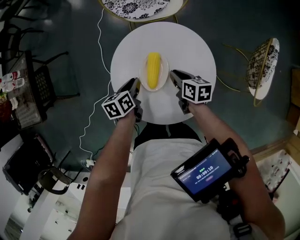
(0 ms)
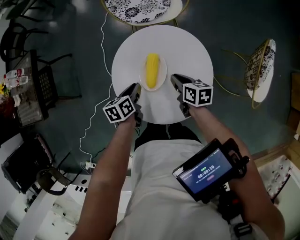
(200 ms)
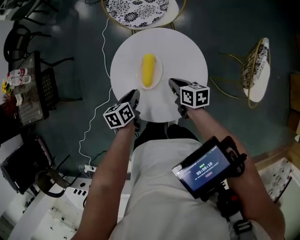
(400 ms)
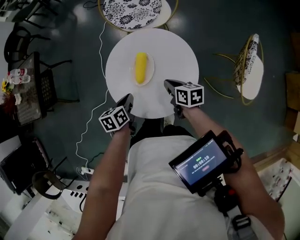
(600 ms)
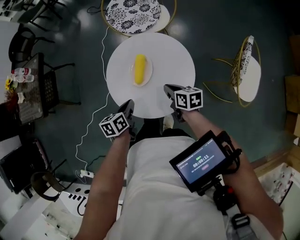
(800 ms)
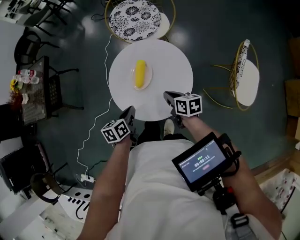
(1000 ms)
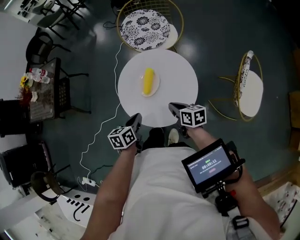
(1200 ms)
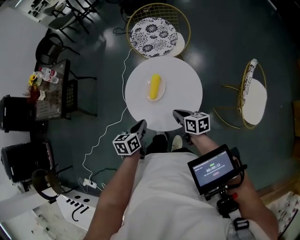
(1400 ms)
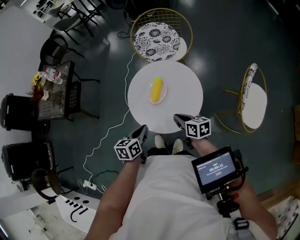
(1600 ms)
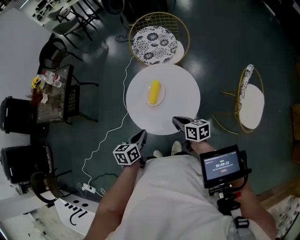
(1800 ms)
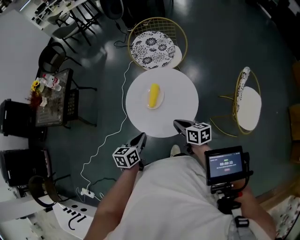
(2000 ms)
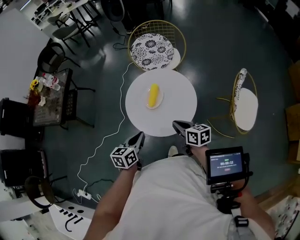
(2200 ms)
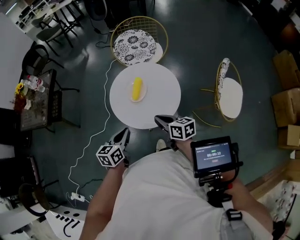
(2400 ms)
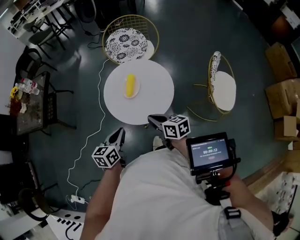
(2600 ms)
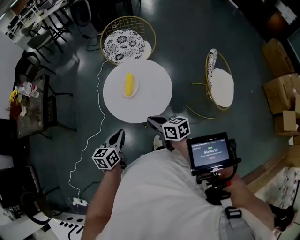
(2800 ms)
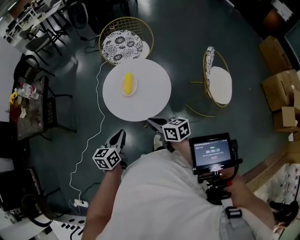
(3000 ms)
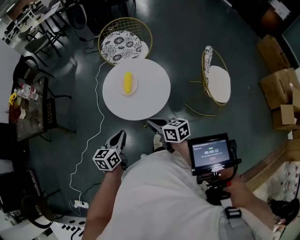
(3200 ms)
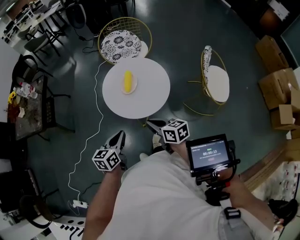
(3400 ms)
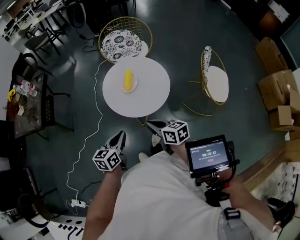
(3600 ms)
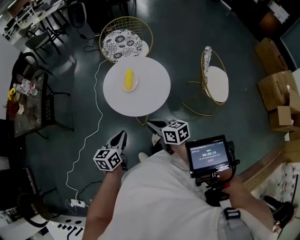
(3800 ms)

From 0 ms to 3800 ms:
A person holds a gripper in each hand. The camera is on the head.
From 0 ms to 1200 ms: Both grippers move backward and upward, approximately 20 cm.
From 1200 ms to 2600 ms: The right gripper goes roughly 15 cm backward, upward and to the left; the left gripper travels backward and upward by roughly 15 cm.
From 2600 ms to 3800 ms: The grippers both shift backward by roughly 10 cm.

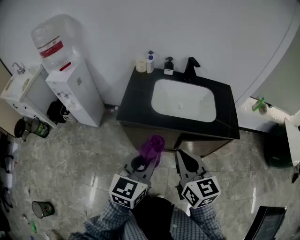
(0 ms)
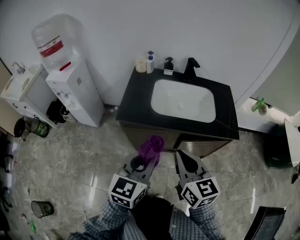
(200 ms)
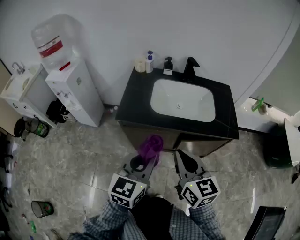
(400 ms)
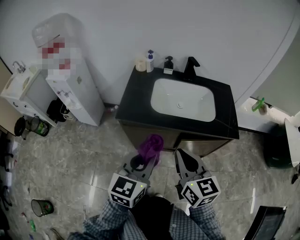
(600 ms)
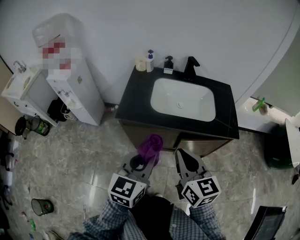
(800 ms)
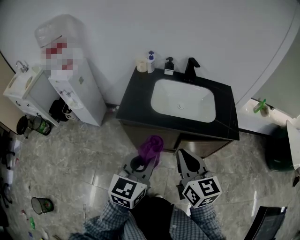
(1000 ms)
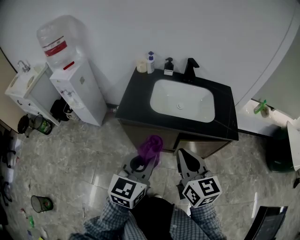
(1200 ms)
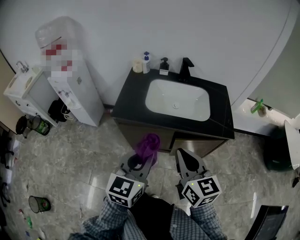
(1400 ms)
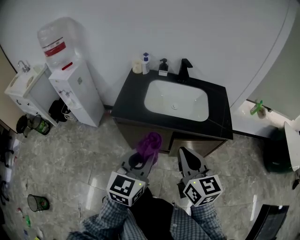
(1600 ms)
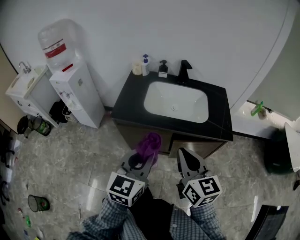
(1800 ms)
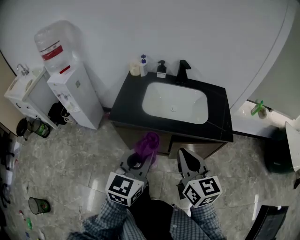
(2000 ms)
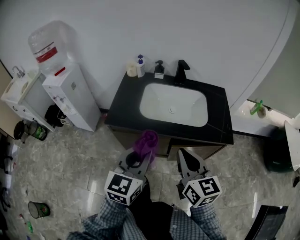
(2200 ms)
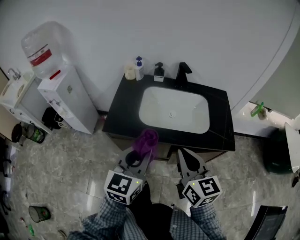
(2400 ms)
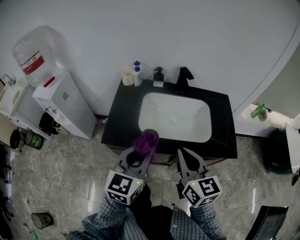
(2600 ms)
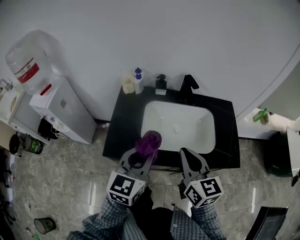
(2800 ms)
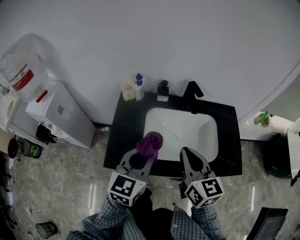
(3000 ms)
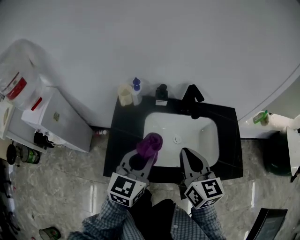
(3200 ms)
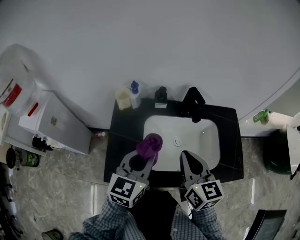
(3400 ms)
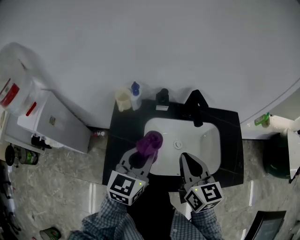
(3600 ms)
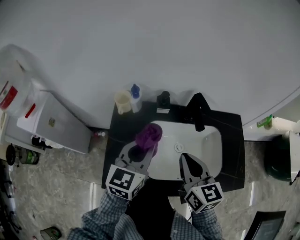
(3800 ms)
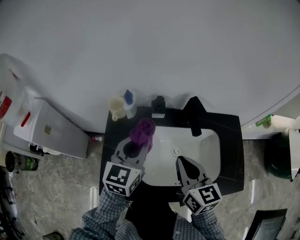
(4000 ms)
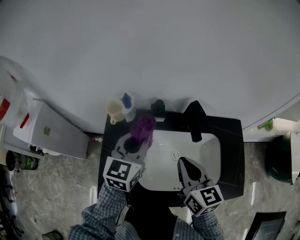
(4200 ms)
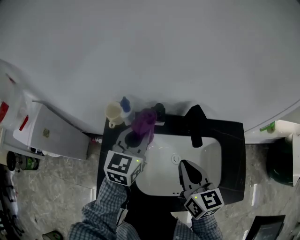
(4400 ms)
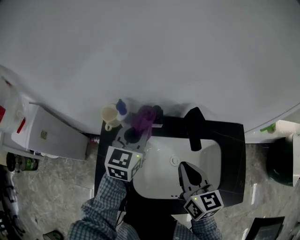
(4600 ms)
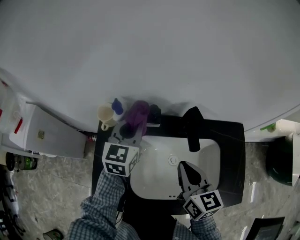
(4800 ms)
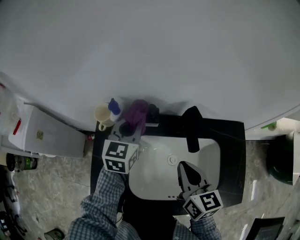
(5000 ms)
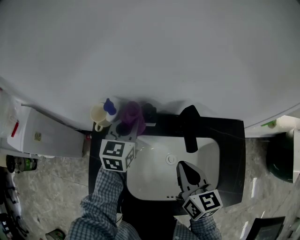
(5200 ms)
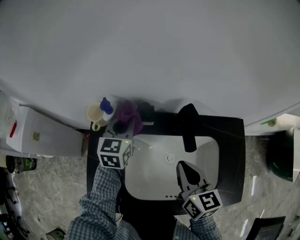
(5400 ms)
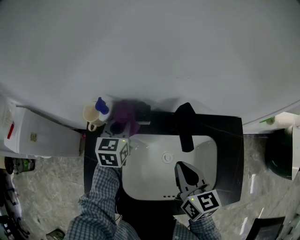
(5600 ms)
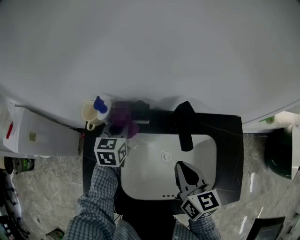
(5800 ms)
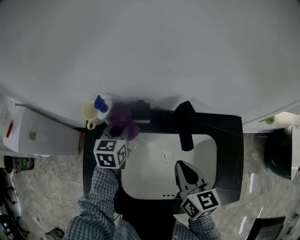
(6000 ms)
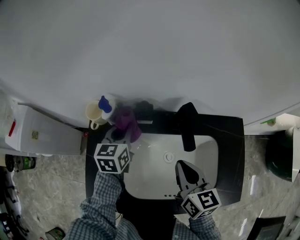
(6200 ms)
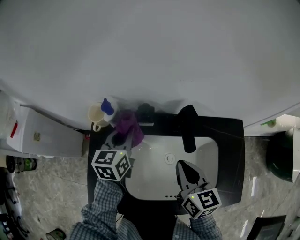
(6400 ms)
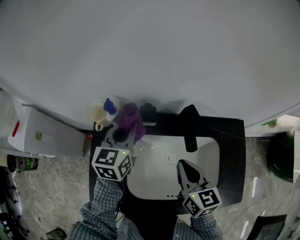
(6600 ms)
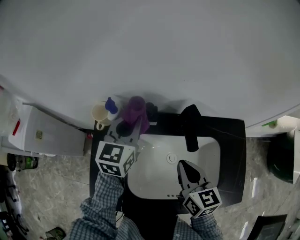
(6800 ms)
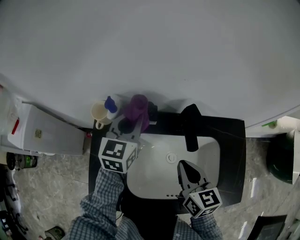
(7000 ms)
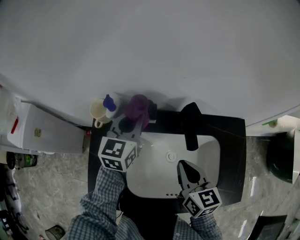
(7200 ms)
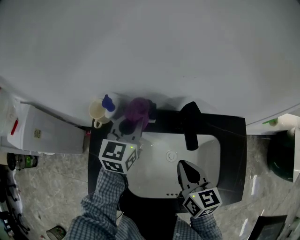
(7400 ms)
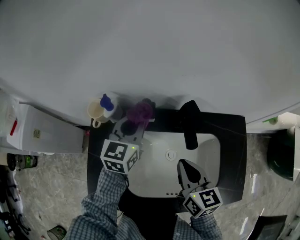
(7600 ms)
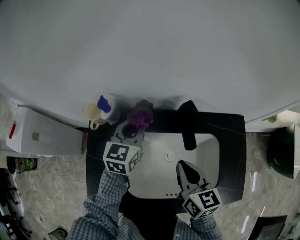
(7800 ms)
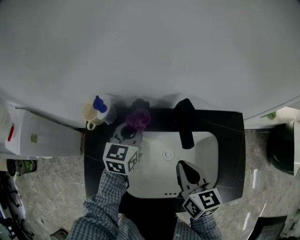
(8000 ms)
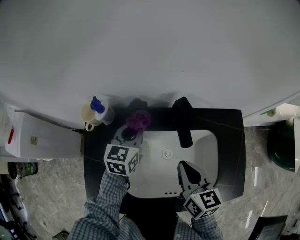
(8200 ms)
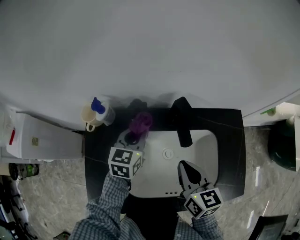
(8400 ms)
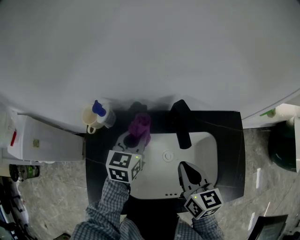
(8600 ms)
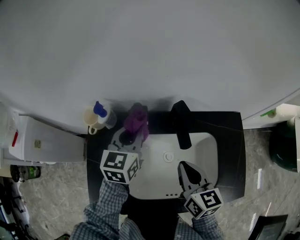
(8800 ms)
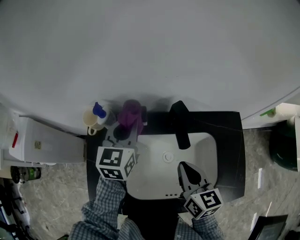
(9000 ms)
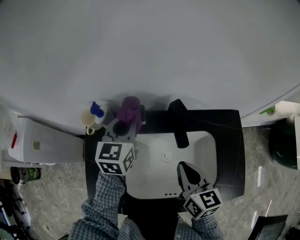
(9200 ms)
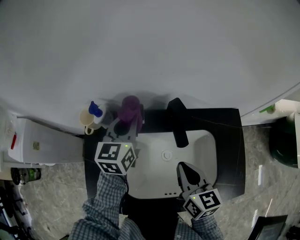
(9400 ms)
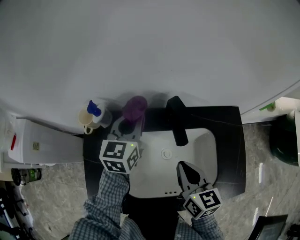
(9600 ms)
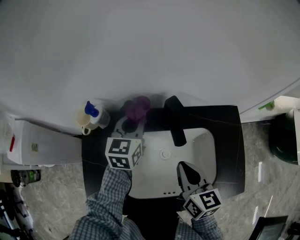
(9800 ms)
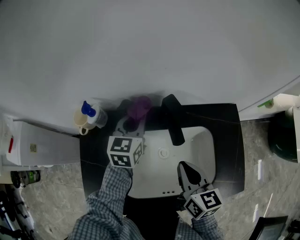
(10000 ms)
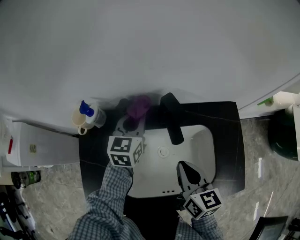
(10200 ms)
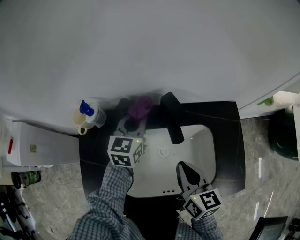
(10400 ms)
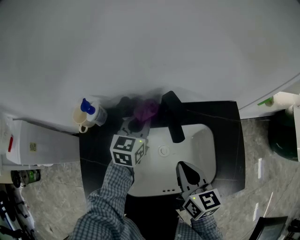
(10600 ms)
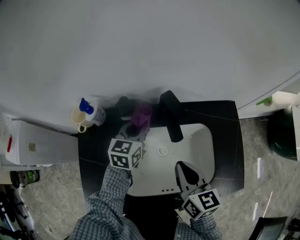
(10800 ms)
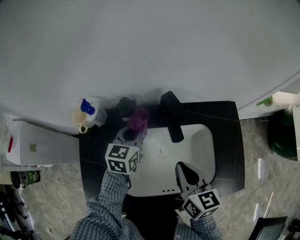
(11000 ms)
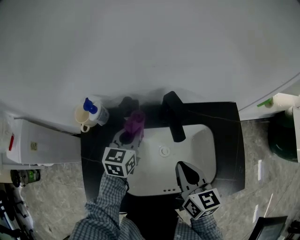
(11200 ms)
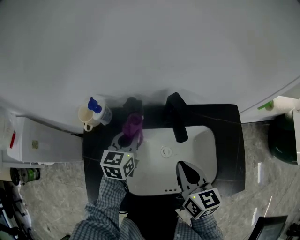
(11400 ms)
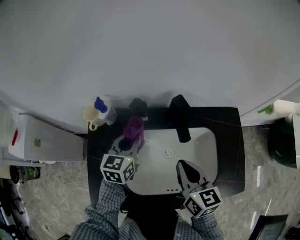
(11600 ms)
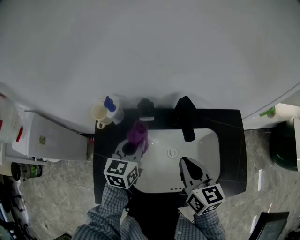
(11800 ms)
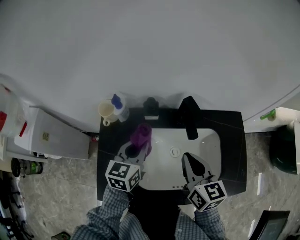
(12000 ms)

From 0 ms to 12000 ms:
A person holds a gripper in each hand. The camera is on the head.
From 0 ms to 1600 ms: Both grippers travel together to the right, roughly 5 cm.
From 1600 ms to 3000 ms: The two grippers go approximately 30 cm forward.
From 3000 ms to 4400 ms: The left gripper heads forward, covering approximately 30 cm; the right gripper goes about 15 cm forward.
From 4400 ms to 6000 ms: The right gripper travels downward by about 5 cm; the left gripper is displaced downward and forward by roughly 15 cm, and rotates roughly 20 degrees.
From 6000 ms to 7600 ms: The left gripper is displaced upward by approximately 10 cm.
From 7600 ms to 9000 ms: The left gripper moves about 5 cm downward and comes back.
From 9000 ms to 10400 ms: The left gripper moves downward and to the right, approximately 10 cm.
From 10400 ms to 12000 ms: The left gripper travels backward and to the left by some 15 cm. The right gripper is displaced upward by about 5 cm.

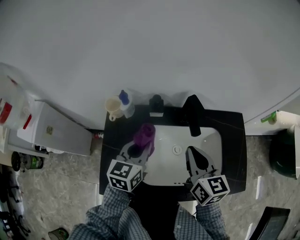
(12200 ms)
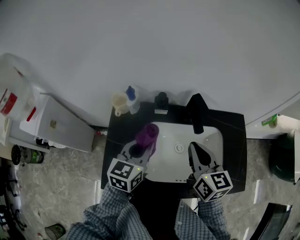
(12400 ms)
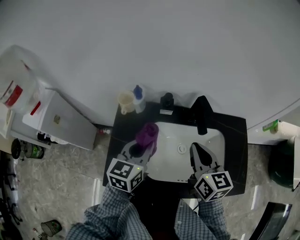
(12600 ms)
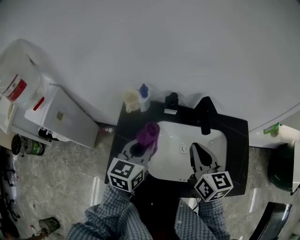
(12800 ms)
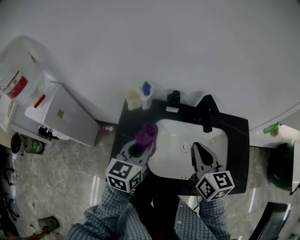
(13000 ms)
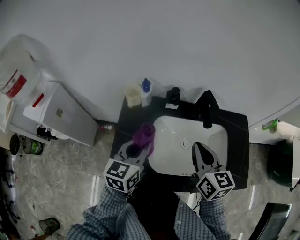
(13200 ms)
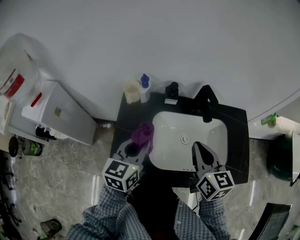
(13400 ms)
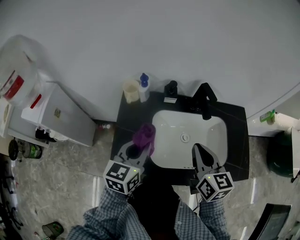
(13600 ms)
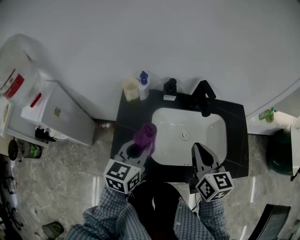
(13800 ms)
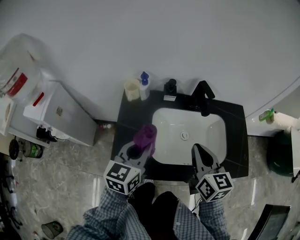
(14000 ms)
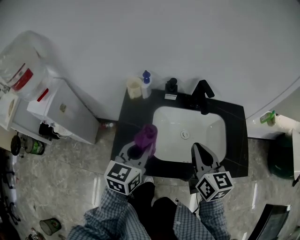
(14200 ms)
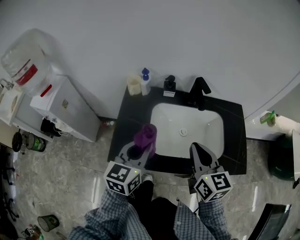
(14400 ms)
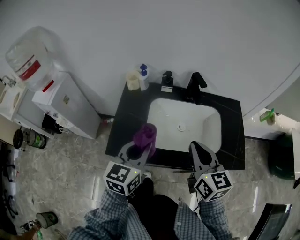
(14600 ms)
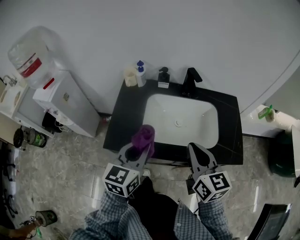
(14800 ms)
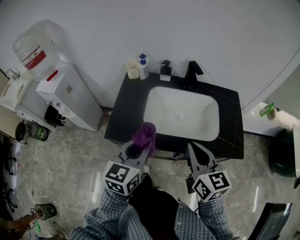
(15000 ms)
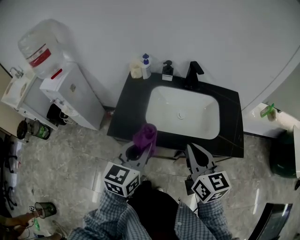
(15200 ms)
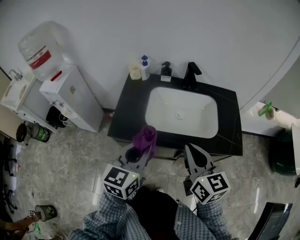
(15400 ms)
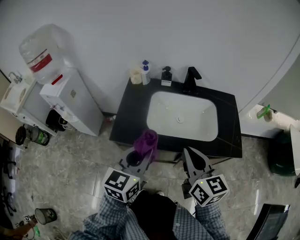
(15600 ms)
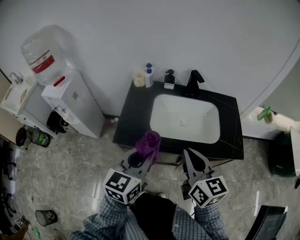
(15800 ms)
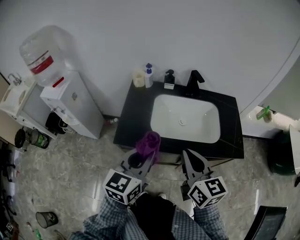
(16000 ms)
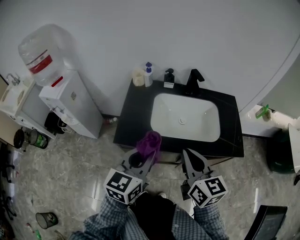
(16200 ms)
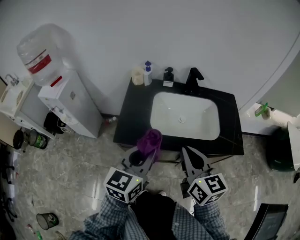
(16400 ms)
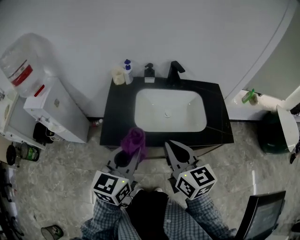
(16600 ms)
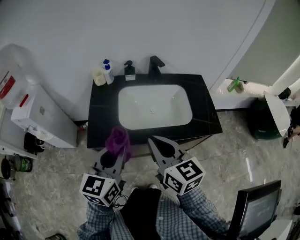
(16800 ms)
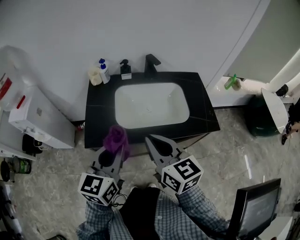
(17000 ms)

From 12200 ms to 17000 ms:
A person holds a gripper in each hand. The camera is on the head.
From 12200 ms to 13800 ms: The right gripper shifts roughly 10 cm backward. The left gripper heads backward and to the left, covering roughly 15 cm.
From 13800 ms to 15400 ms: The two grippers go some 20 cm backward.
From 15400 ms to 17000 ms: The right gripper moves to the left, approximately 5 cm.

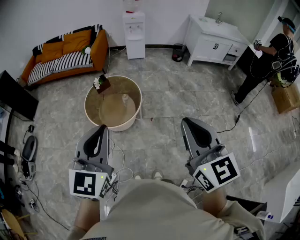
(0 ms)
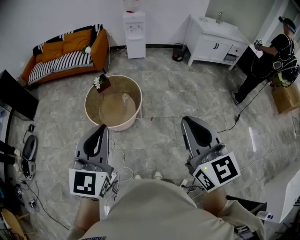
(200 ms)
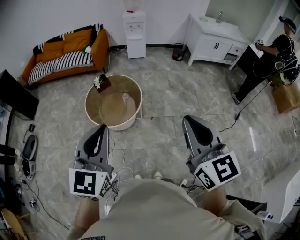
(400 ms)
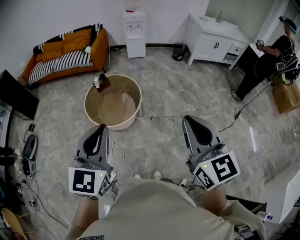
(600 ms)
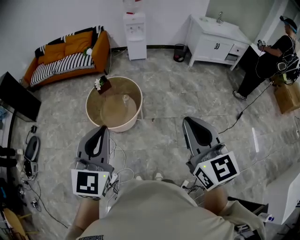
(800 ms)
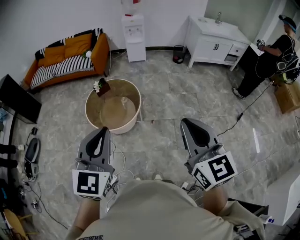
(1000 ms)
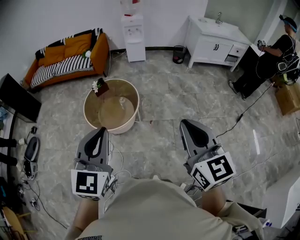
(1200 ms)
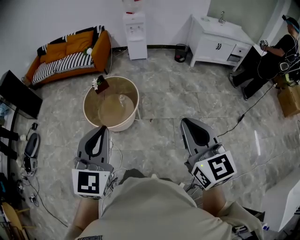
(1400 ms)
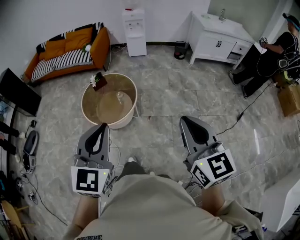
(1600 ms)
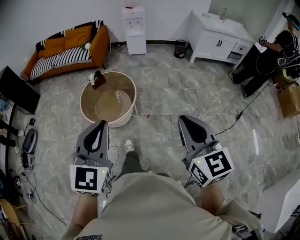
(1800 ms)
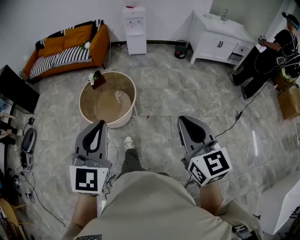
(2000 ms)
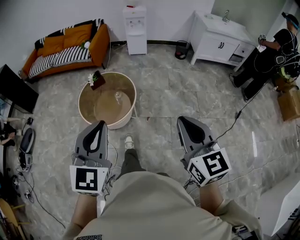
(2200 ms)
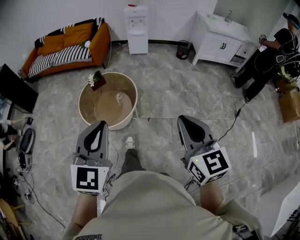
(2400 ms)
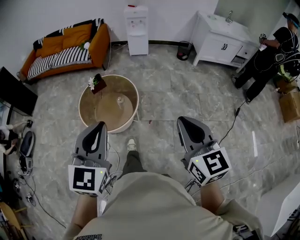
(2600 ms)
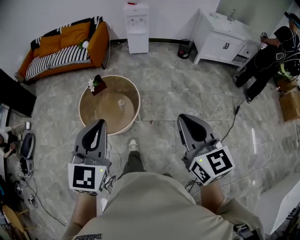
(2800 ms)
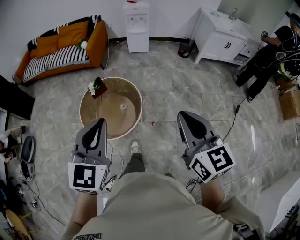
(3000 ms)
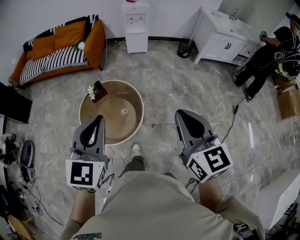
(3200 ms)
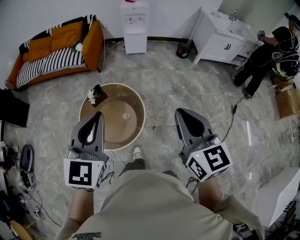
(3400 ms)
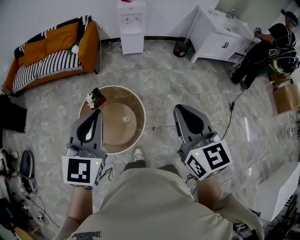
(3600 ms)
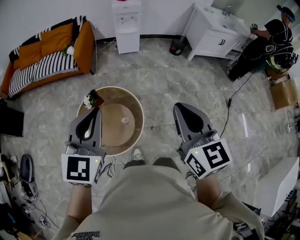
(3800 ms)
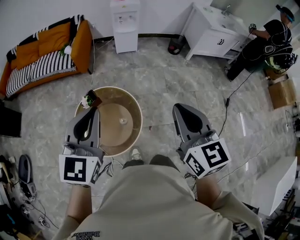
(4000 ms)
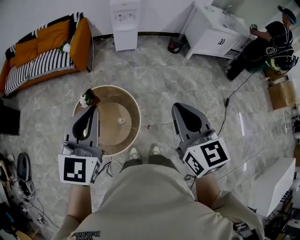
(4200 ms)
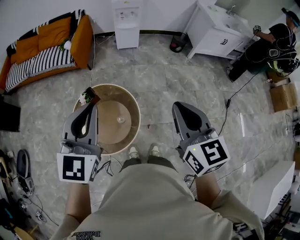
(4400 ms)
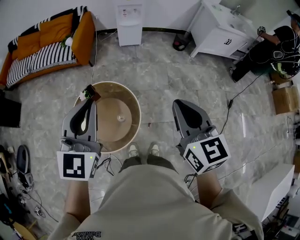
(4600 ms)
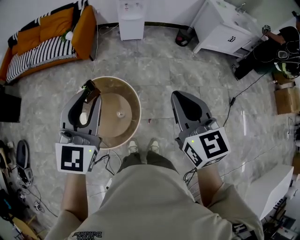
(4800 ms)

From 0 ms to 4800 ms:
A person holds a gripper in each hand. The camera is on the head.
From 0 ms to 1600 ms: Both grippers travel together to the right, approximately 10 cm.
From 1600 ms to 3200 ms: The grippers both shift forward by some 30 cm.
From 3200 ms to 4800 ms: The grippers both shift forward by approximately 20 cm.
